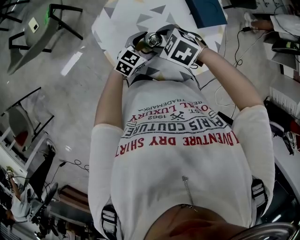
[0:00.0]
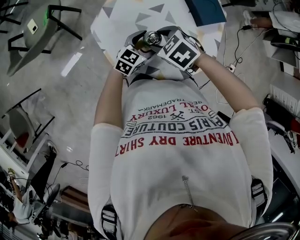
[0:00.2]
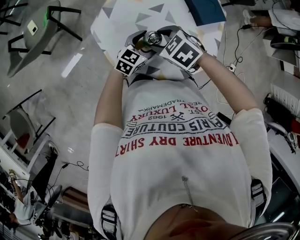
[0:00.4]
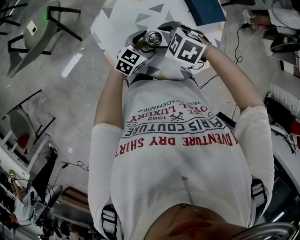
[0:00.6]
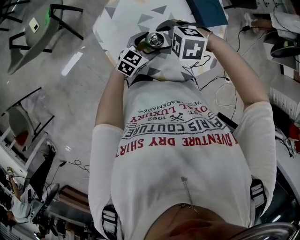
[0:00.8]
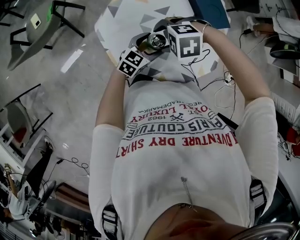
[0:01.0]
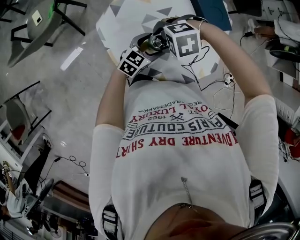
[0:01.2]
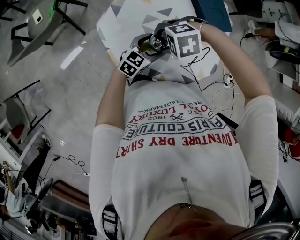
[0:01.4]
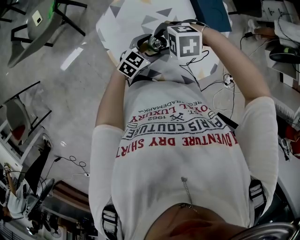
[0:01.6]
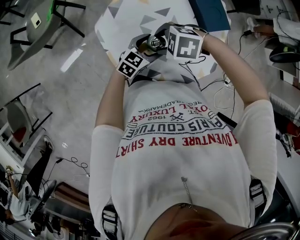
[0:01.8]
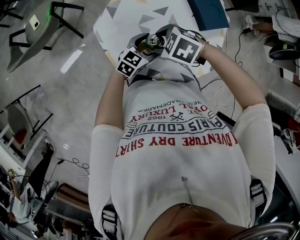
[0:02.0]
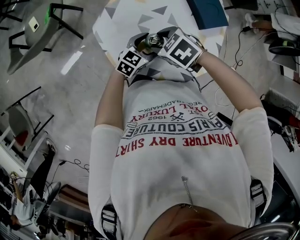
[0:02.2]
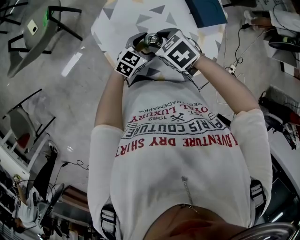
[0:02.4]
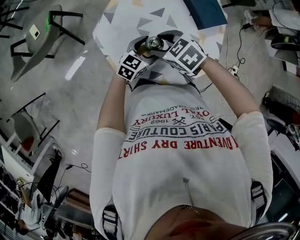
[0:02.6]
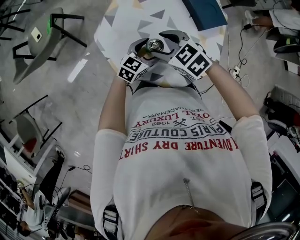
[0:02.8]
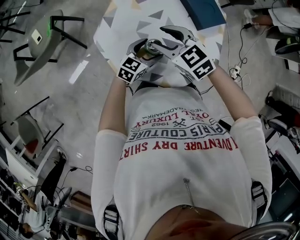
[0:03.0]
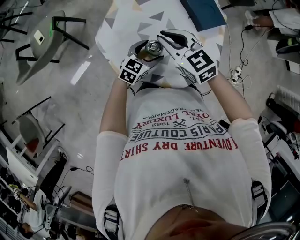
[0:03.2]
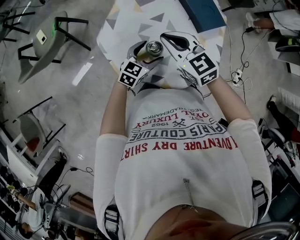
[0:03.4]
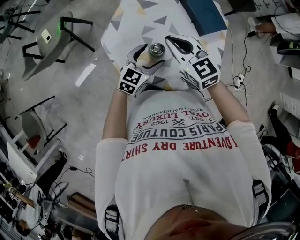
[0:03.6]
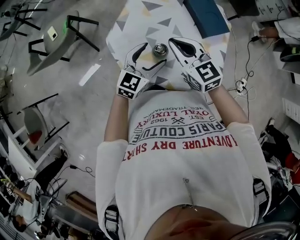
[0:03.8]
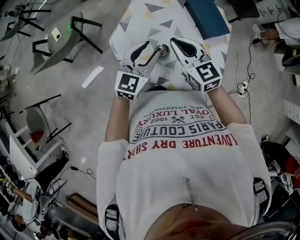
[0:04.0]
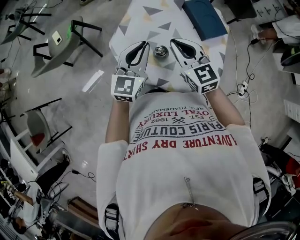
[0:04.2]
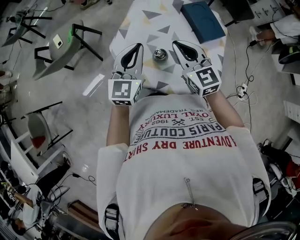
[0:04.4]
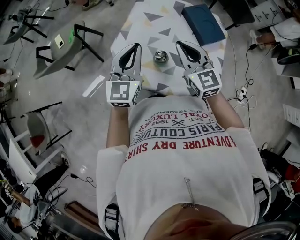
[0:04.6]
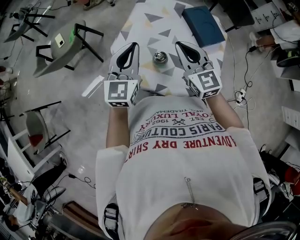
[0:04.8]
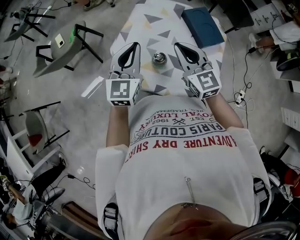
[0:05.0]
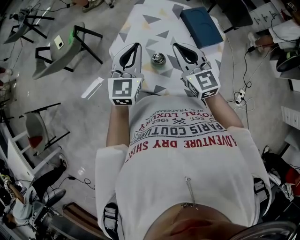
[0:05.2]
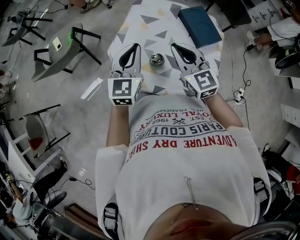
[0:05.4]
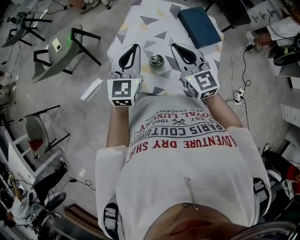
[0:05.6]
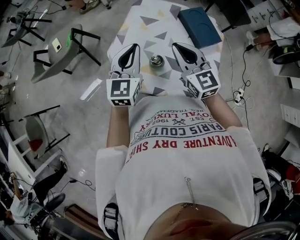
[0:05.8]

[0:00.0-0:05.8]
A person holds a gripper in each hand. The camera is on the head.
0:00.0 to 0:01.4: The right gripper rotates approximately 40 degrees.
0:01.4 to 0:02.8: The right gripper swivels about 60 degrees.
0:02.8 to 0:04.4: The right gripper moves upward and to the right, approximately 15 cm, points its fingers about 30 degrees further upward, and closes up; the left gripper moves upward, approximately 25 cm, turns by some 40 degrees, and closes its fingers.
0:04.4 to 0:05.8: The grippers make only small movements.

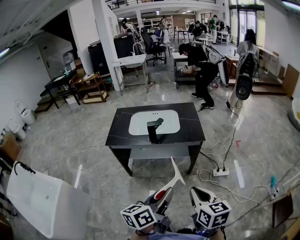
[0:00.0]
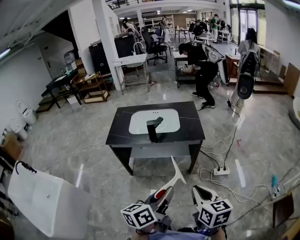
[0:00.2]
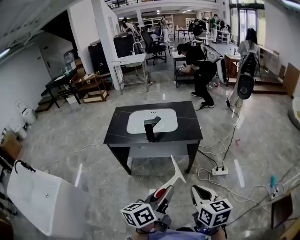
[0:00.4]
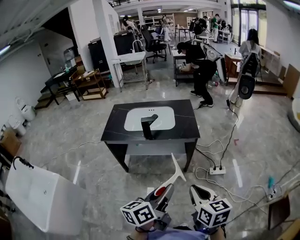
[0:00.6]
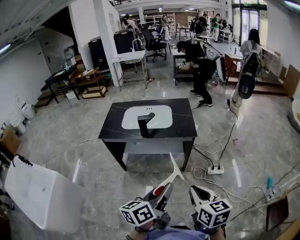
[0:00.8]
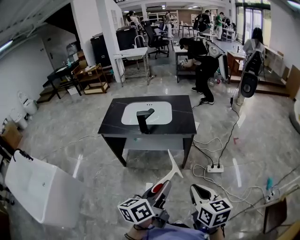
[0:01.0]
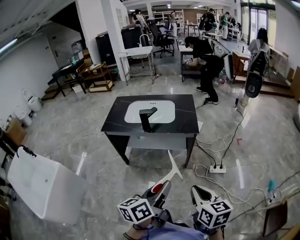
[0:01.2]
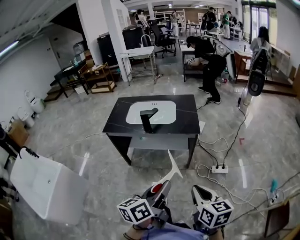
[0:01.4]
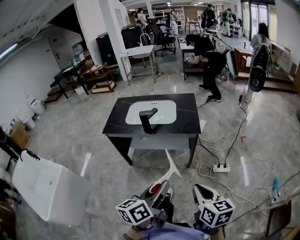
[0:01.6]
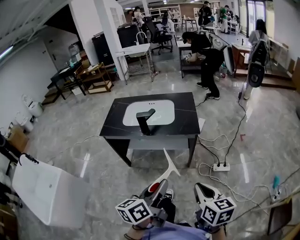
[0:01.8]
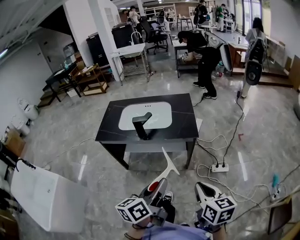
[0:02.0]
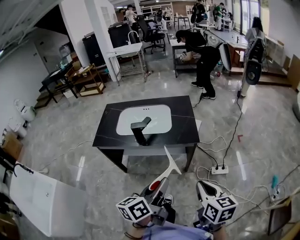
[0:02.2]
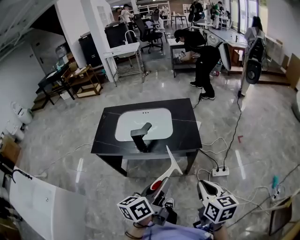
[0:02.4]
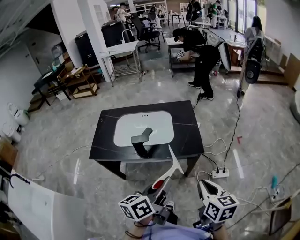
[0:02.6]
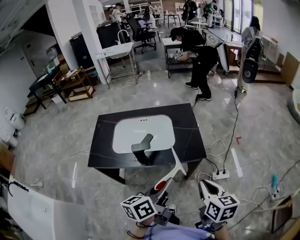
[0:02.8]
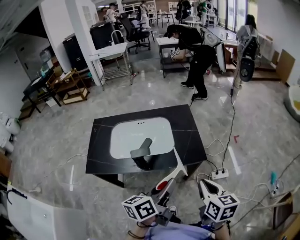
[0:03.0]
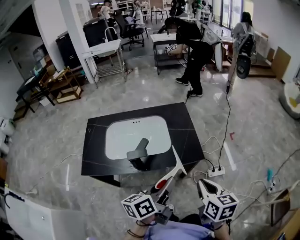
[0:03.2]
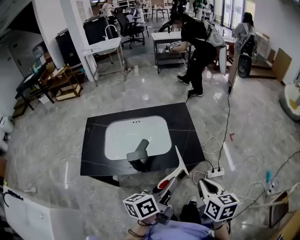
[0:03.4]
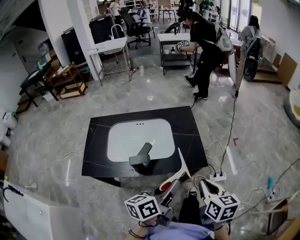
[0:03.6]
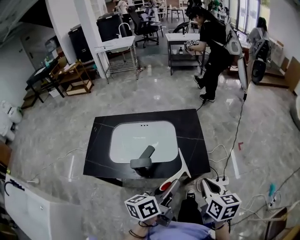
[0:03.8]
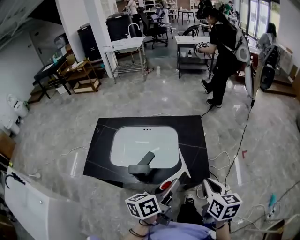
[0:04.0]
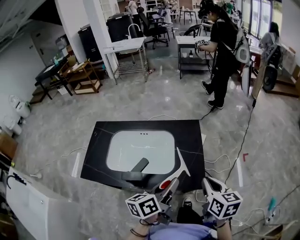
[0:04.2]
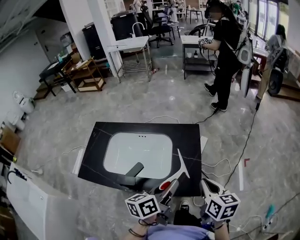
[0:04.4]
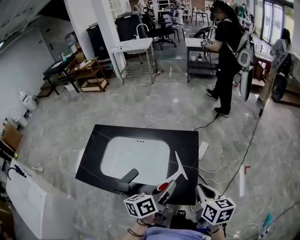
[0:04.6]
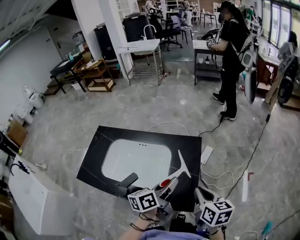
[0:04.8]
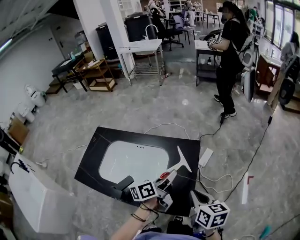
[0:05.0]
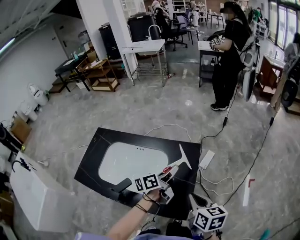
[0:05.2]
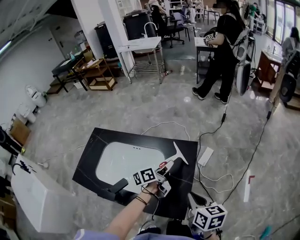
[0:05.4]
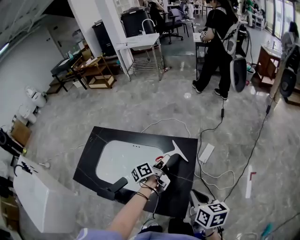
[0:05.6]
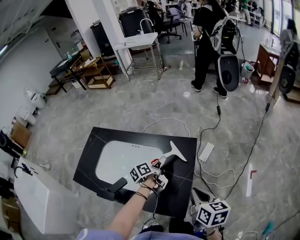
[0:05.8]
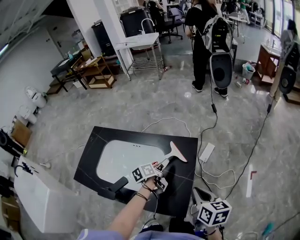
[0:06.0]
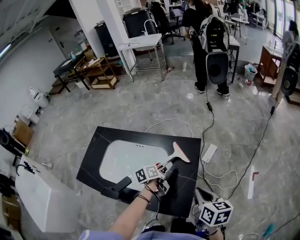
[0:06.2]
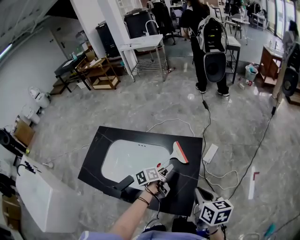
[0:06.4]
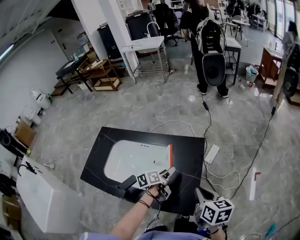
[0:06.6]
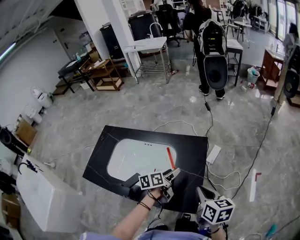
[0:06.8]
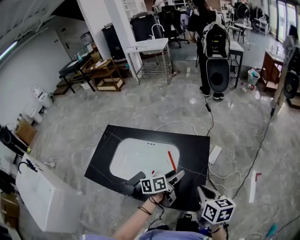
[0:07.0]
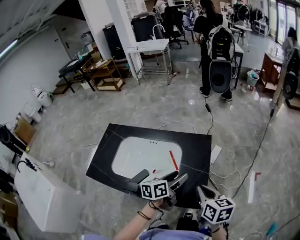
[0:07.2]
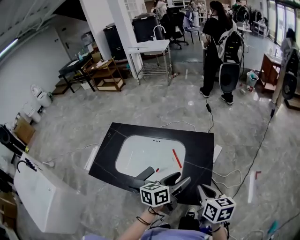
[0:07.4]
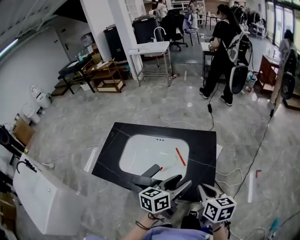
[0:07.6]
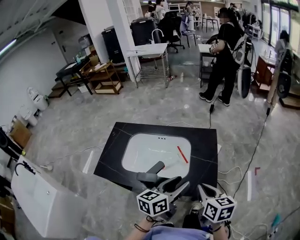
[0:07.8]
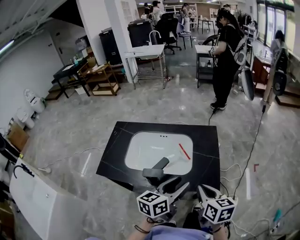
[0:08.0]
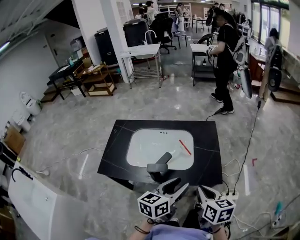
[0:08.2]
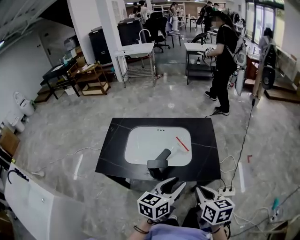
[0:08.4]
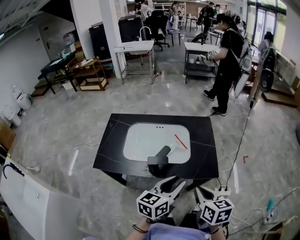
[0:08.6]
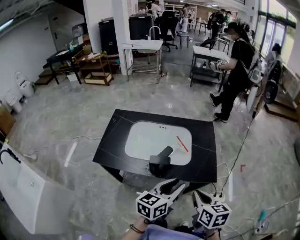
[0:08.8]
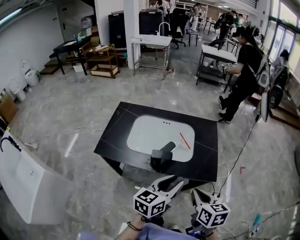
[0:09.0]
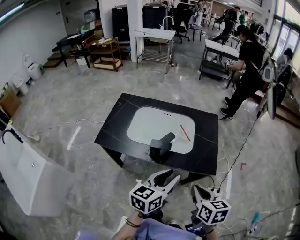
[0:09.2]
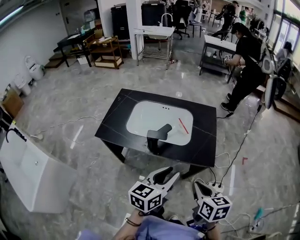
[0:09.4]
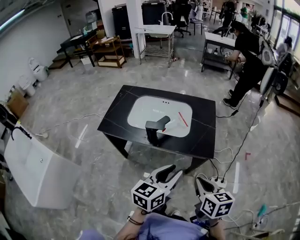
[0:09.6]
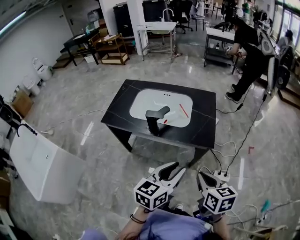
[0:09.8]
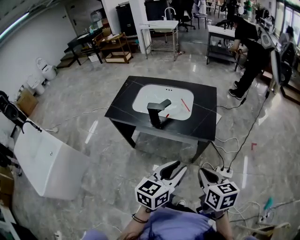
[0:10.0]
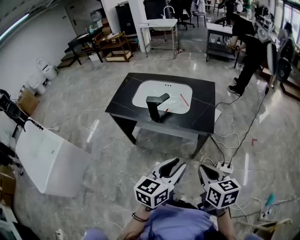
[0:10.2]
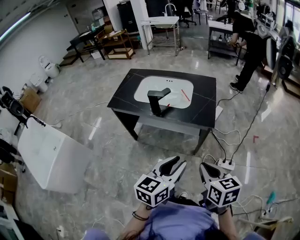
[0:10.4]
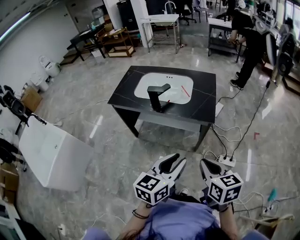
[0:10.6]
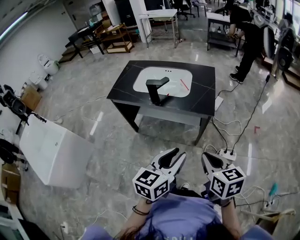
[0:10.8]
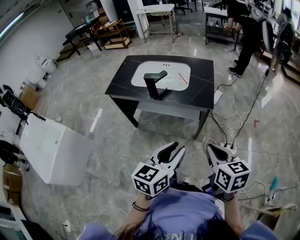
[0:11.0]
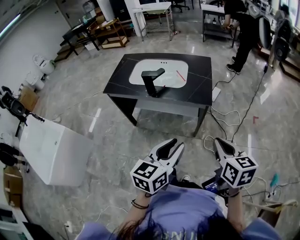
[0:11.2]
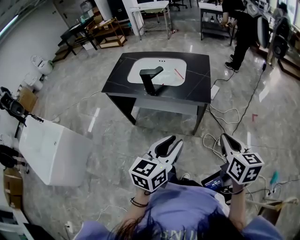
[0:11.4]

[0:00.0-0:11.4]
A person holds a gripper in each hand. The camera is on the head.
0:00.0 to 0:01.4: Both grippers move to the right, approximately 10 cm.
0:01.4 to 0:02.8: The grippers both shift forward by some 25 cm.
0:02.8 to 0:04.2: Both grippers move forward, roughly 20 cm.
0:04.2 to 0:05.6: The left gripper shifts some 35 cm forward and downward, and rotates roughly 30 degrees, while the right gripper is displaced forward, to the right and downward by some 15 cm.
0:05.6 to 0:07.2: The left gripper moves backward, roughly 15 cm, changes its angle by about 30 degrees, and opens. Meanwhile the right gripper is displaced to the left by about 5 cm.
0:07.2 to 0:08.6: Both grippers travel together backward and to the left, approximately 25 cm. The left gripper turns by roughly 20 degrees, and closes its fingers.
0:08.6 to 0:10.0: The grippers both shift backward and to the right by some 20 cm.
0:10.0 to 0:11.4: The right gripper moves to the right and backward, approximately 10 cm. The left gripper shifts some 10 cm backward.

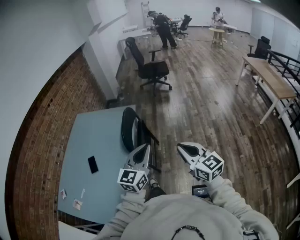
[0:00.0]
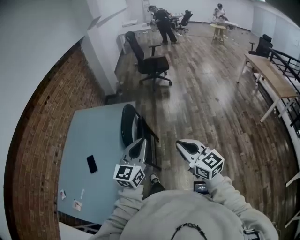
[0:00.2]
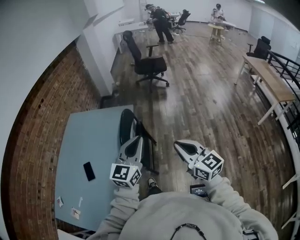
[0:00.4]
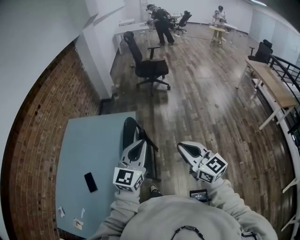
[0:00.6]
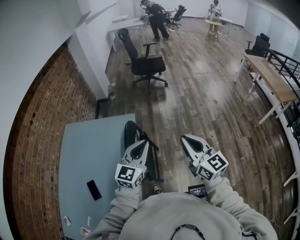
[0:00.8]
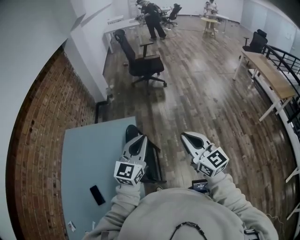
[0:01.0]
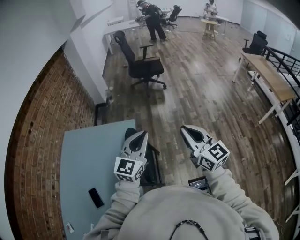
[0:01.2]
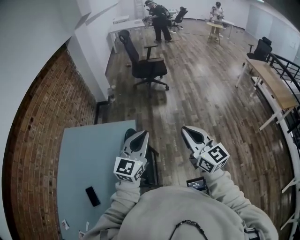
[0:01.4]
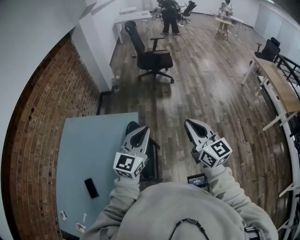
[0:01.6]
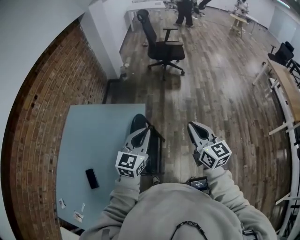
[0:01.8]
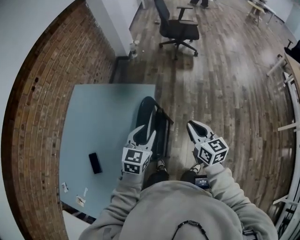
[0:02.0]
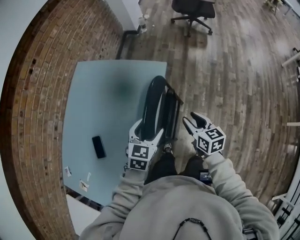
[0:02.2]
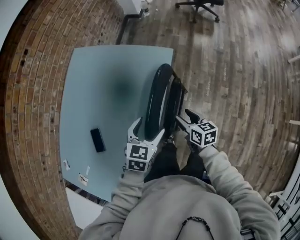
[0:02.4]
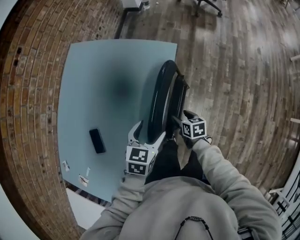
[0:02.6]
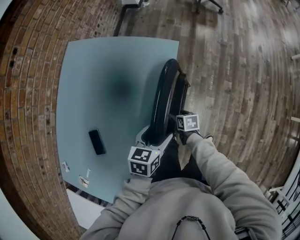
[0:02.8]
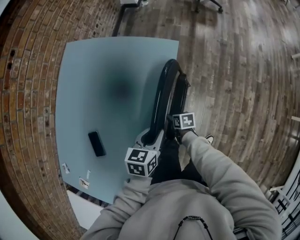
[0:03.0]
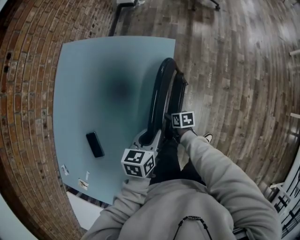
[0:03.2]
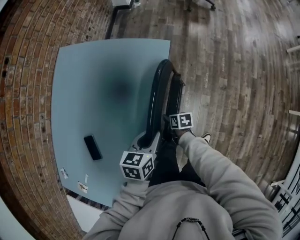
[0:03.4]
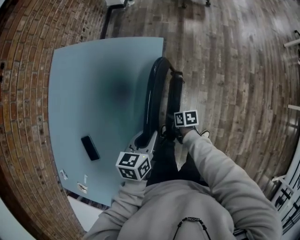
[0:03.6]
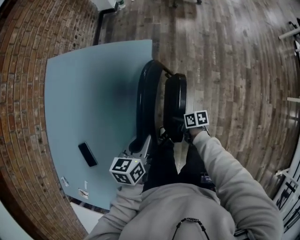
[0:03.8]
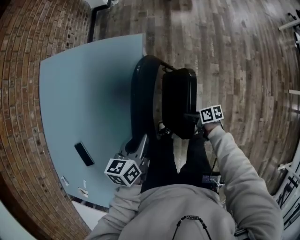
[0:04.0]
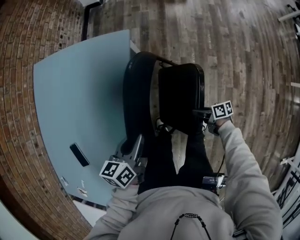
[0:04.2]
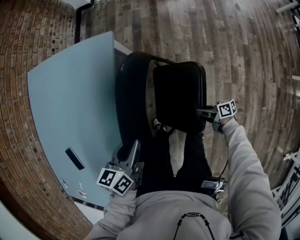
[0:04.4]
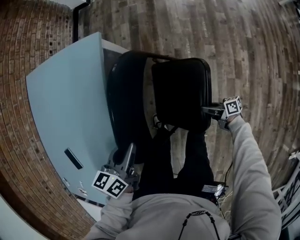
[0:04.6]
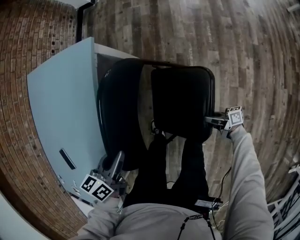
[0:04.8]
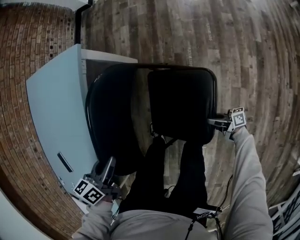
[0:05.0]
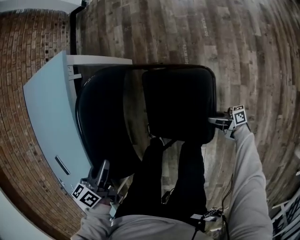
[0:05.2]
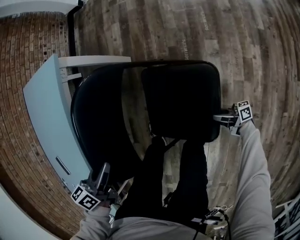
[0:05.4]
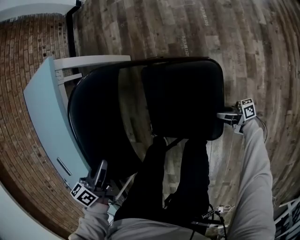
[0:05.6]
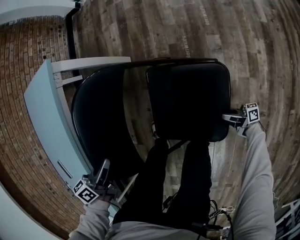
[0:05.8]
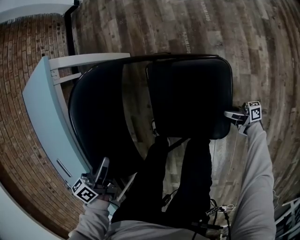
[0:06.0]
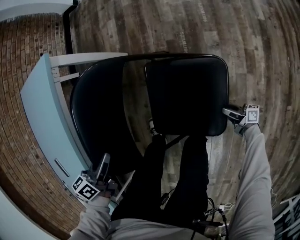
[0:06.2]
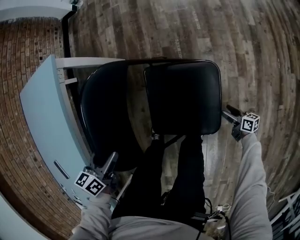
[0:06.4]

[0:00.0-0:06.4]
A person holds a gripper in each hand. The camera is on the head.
0:00.0 to 0:01.6: Both grippers move forward, about 40 cm.
0:01.6 to 0:03.2: The left gripper goes about 35 cm downward, tilts its fingers approximately 40 degrees downward, and opens and closes again. Meanwhile the right gripper goes roughly 60 cm downward, tips its fingers downward by roughly 50 degrees, and opens up.
0:03.2 to 0:04.8: The right gripper shifts about 50 cm to the right and backward, and tips its fingers upward by approximately 50 degrees, while the left gripper travels to the right, downward and backward by about 20 cm.
0:04.8 to 0:06.4: The left gripper shifts some 15 cm downward and to the right, and opens. Meanwhile the right gripper moves to the right, downward and backward, roughly 25 cm, swivels roughly 30 degrees, and opens its fingers.
